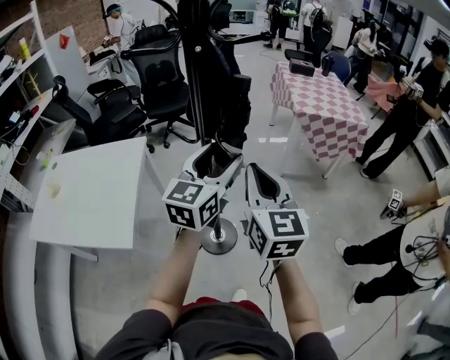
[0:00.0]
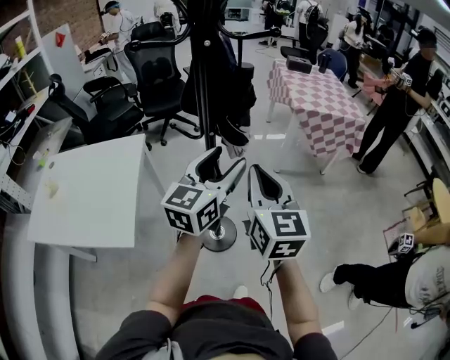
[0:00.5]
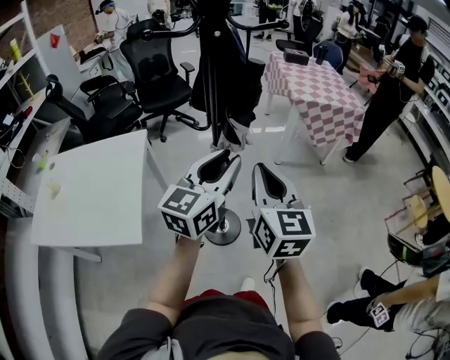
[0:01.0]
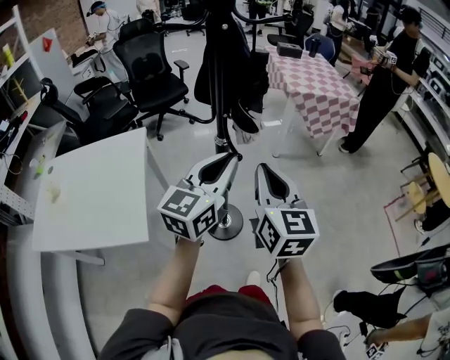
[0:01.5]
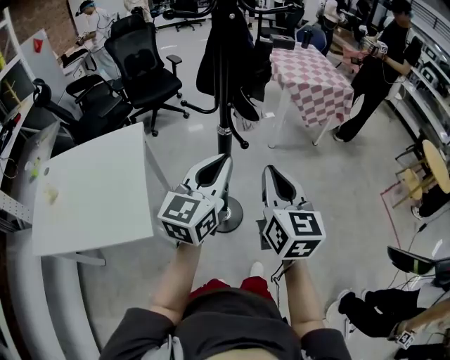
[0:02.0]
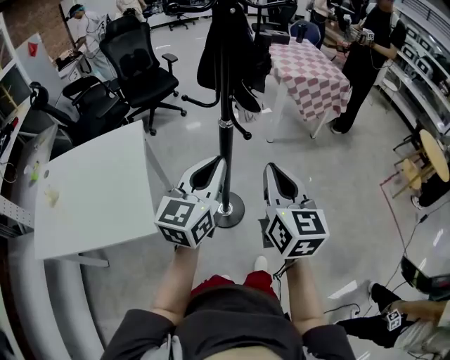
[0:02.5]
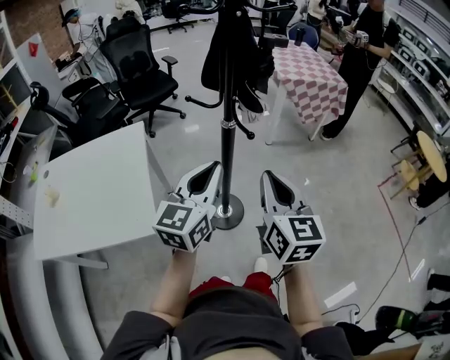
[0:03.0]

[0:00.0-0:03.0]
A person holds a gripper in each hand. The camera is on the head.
0:00.0 to 0:01.5: Both grippers move backward, roughly 10 cm. The left gripper closes.
0:01.5 to 0:03.0: The right gripper travels backward by about 10 cm. Meanwhile the left gripper shifts roughly 10 cm backward and to the left.

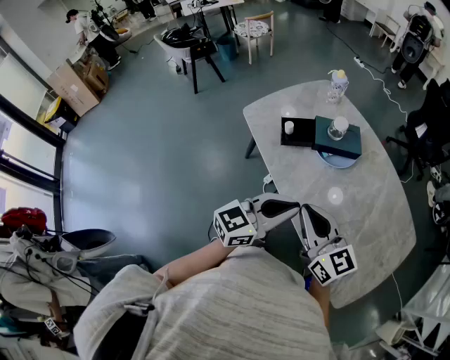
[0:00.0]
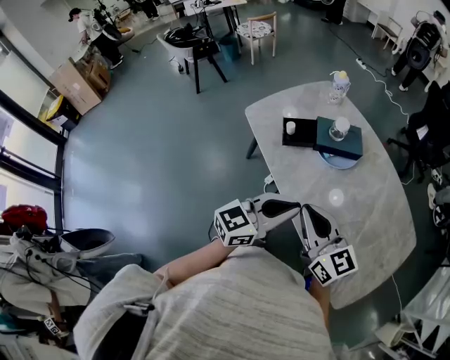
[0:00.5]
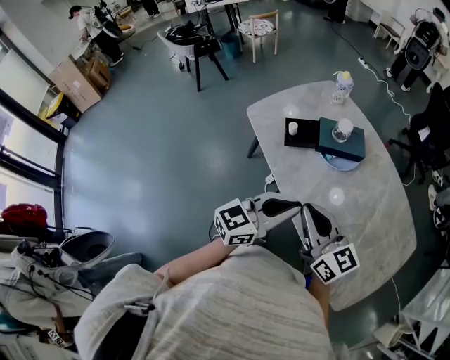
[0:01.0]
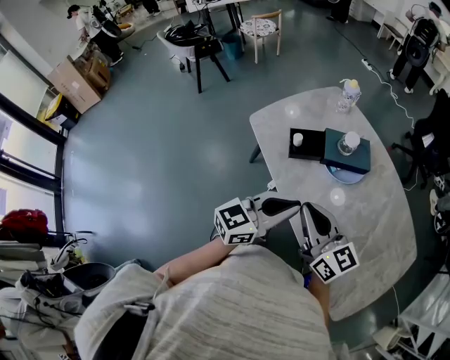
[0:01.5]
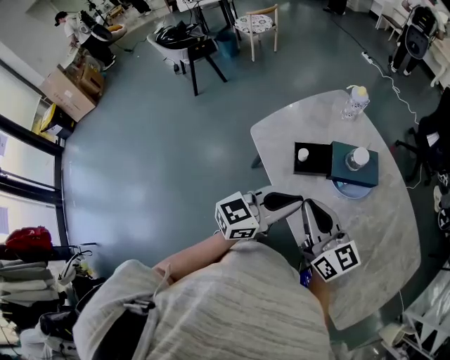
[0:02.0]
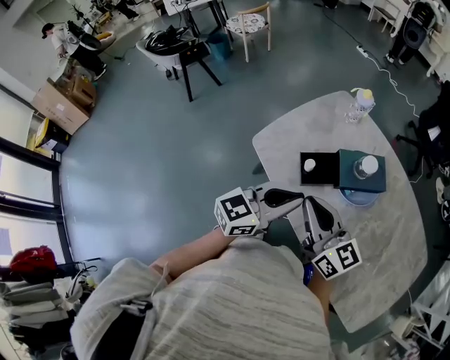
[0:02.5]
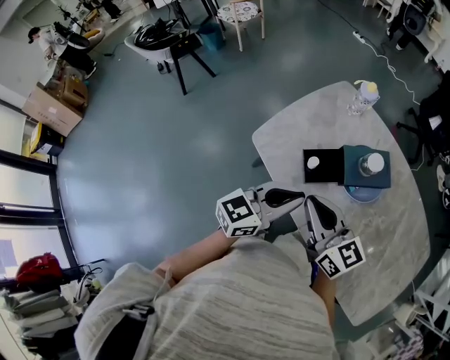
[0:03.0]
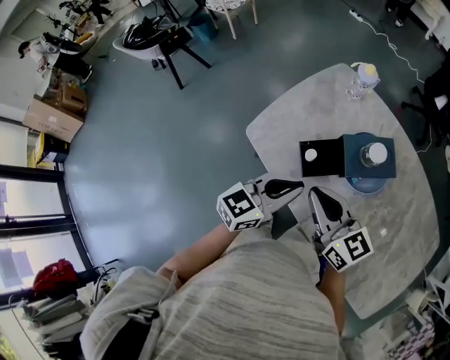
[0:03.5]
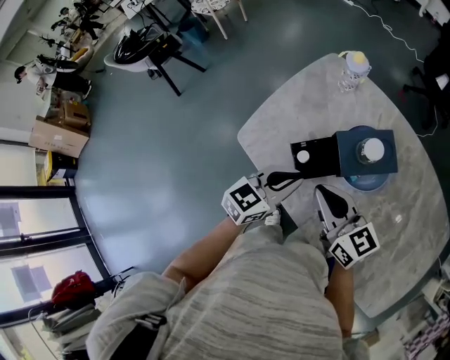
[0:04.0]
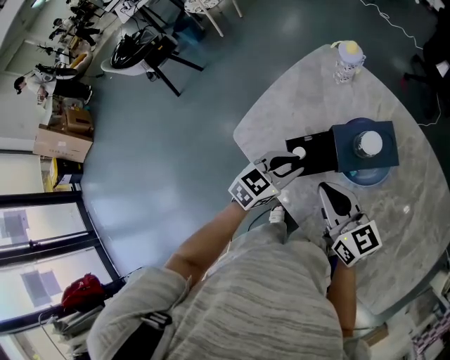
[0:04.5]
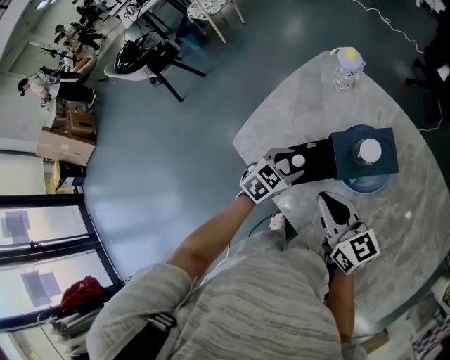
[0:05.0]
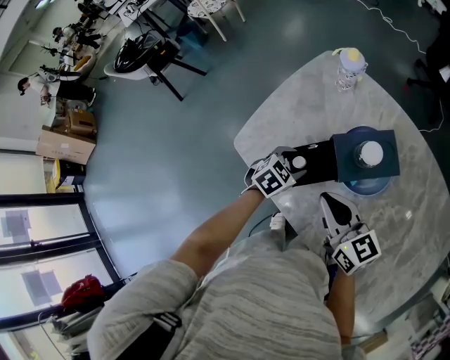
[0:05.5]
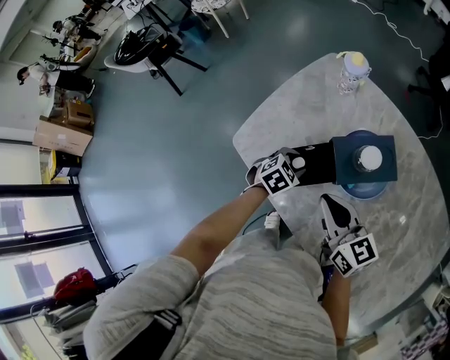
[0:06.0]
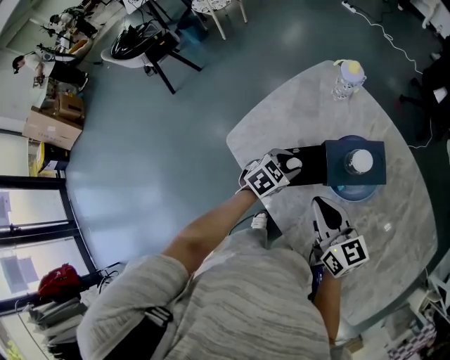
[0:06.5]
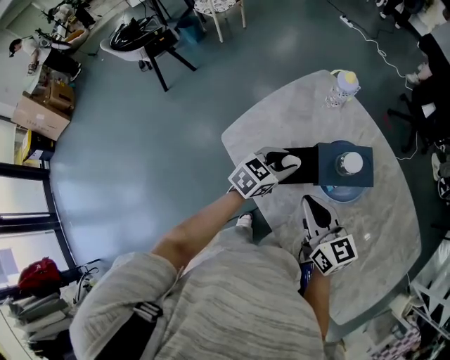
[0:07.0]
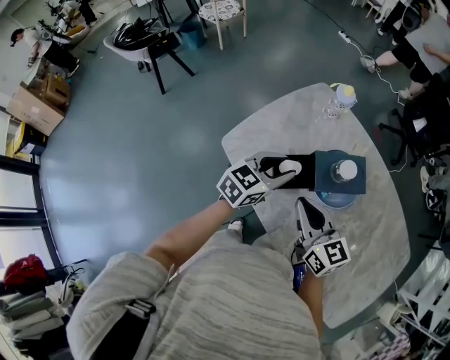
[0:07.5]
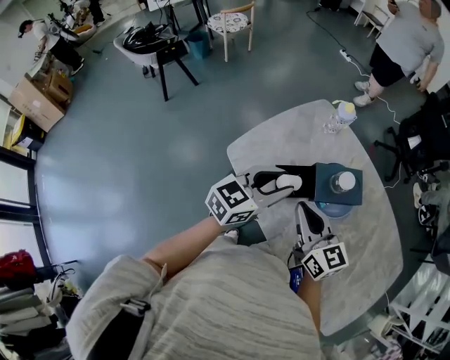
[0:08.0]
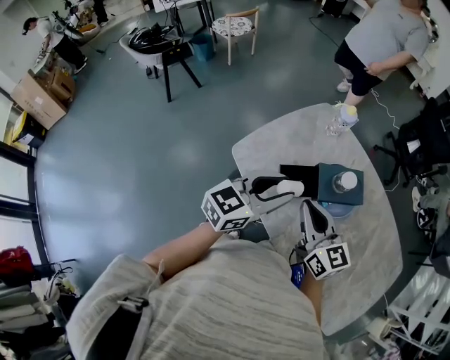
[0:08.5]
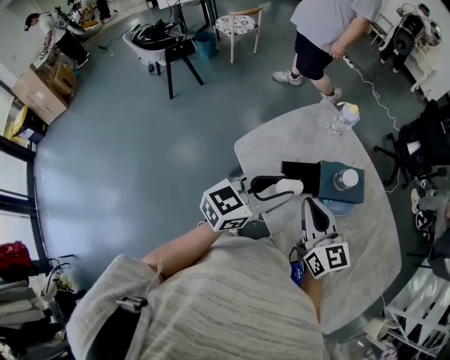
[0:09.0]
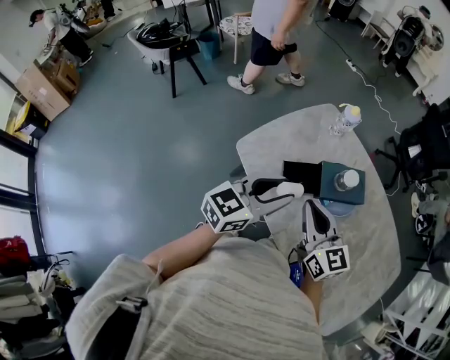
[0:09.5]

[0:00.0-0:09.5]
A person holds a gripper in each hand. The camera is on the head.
0:00.0 to 0:02.0: The grippers both shift forward and to the left by some 20 cm.
0:02.0 to 0:04.0: The two grippers go approximately 20 cm forward and downward.
0:04.0 to 0:05.5: The left gripper travels downward and forward by some 15 cm, angles its fingers downward, by about 30 degrees, and opens its fingers; the right gripper moves approximately 5 cm.
0:05.5 to 0:07.5: The right gripper shifts by some 5 cm, while the left gripper moves upward, about 20 cm, and tips its fingers upward by roughly 30 degrees.
0:07.5 to 0:09.5: The right gripper moves about 5 cm. Meanwhile the left gripper shifts some 15 cm backward and upward.

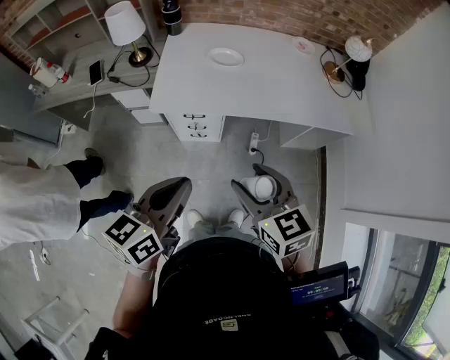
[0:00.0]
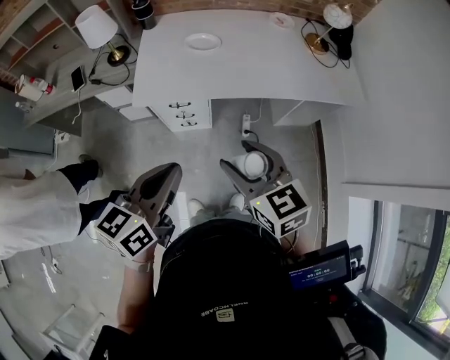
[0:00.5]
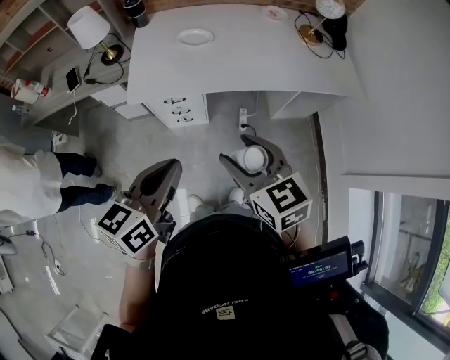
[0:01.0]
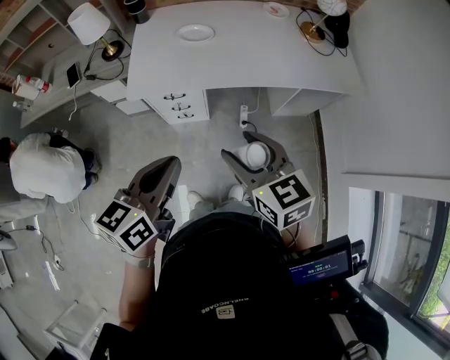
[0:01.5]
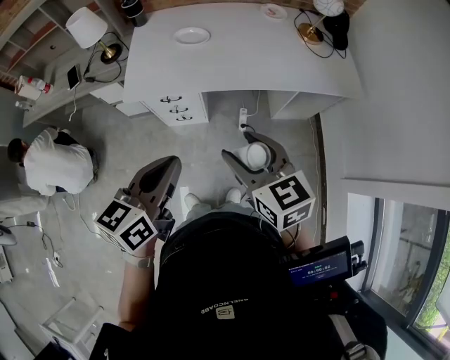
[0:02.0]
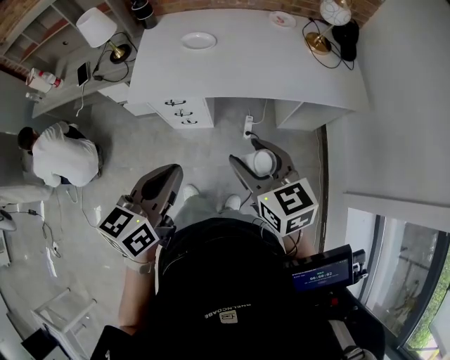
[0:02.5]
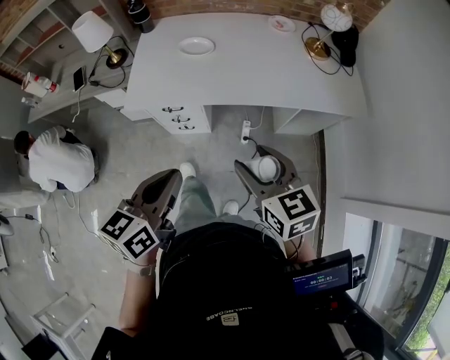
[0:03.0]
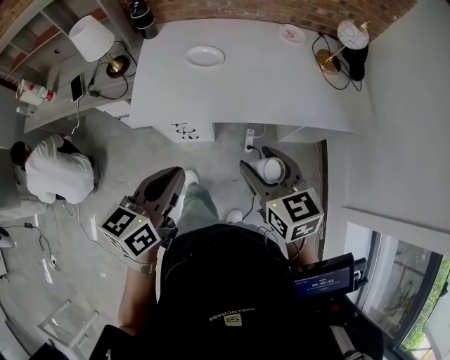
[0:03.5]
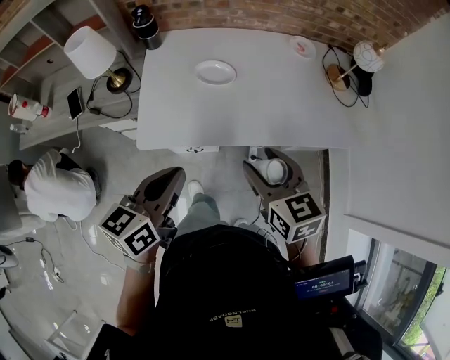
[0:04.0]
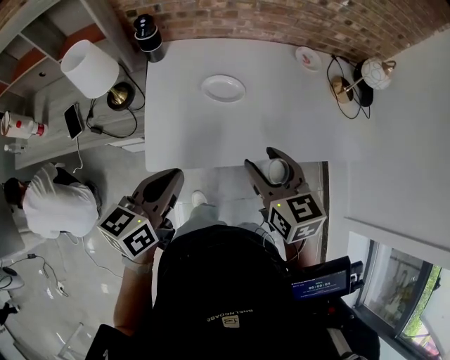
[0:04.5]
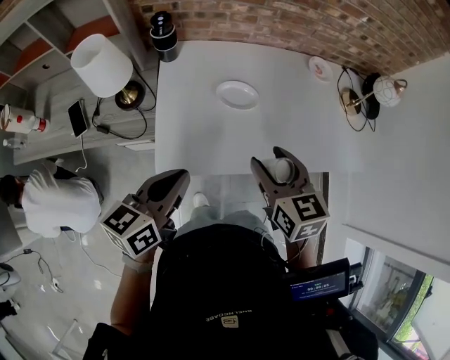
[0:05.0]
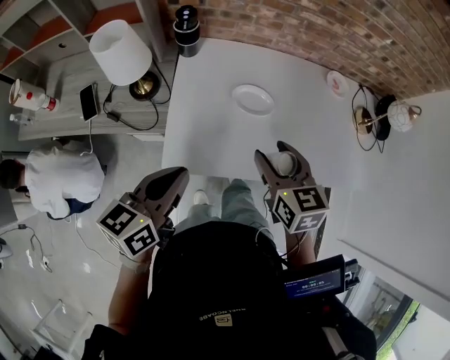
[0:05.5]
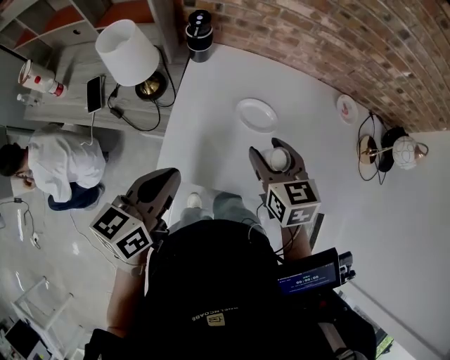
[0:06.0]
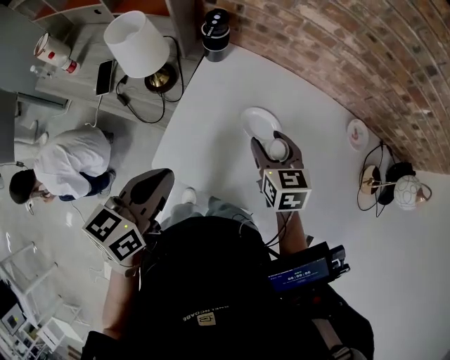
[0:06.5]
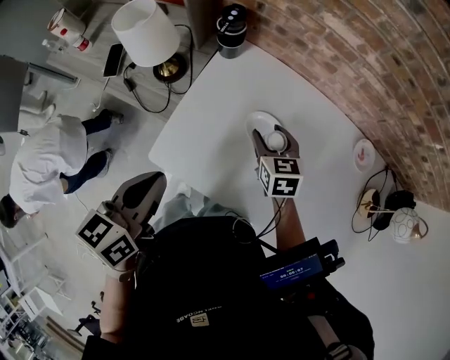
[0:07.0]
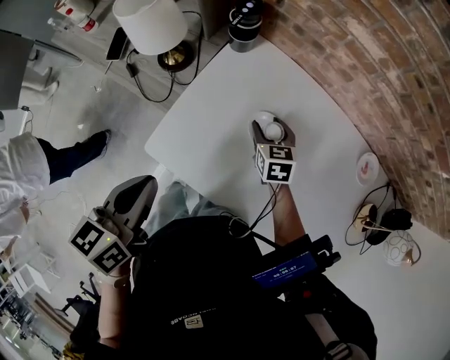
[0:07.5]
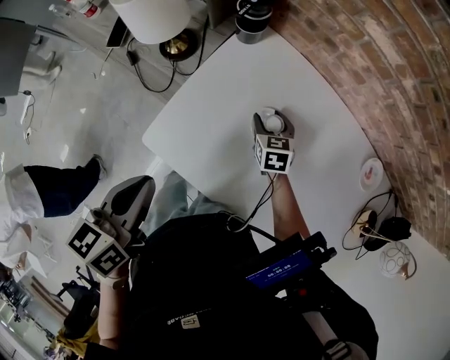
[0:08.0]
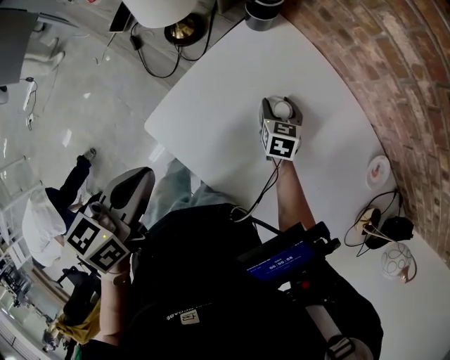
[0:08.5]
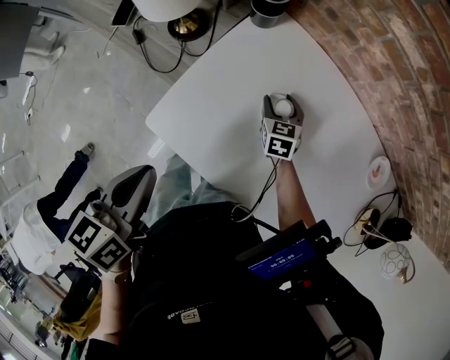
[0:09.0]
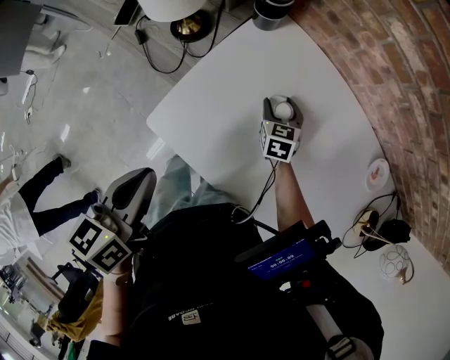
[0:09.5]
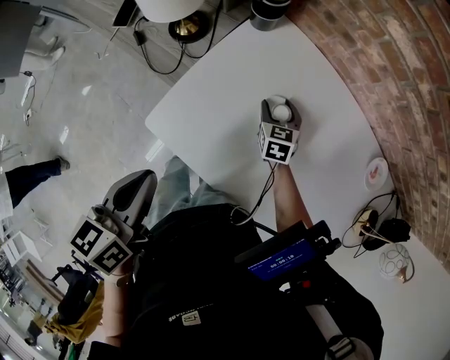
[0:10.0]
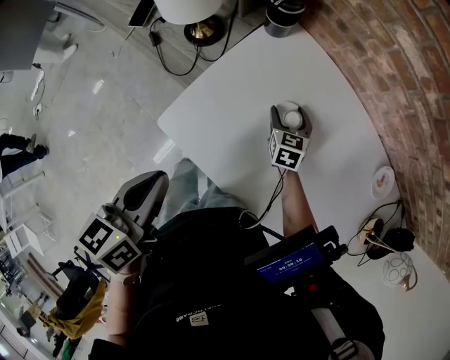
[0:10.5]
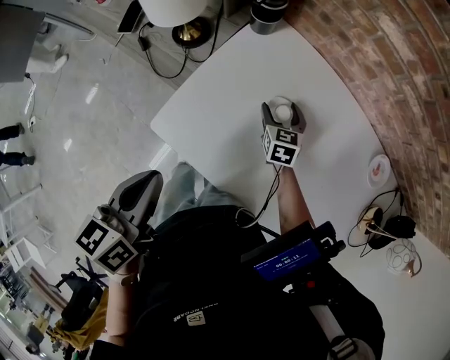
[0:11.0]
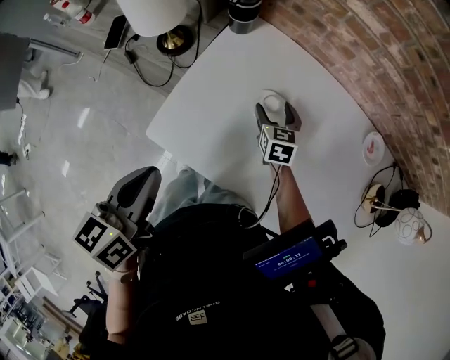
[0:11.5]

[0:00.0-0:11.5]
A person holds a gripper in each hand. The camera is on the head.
0:00.0 to 0:02.0: Both grippers travel together to the right, about 10 cm.
0:02.0 to 0:04.0: The right gripper goes roughly 20 cm forward; the left gripper moves forward and to the left, some 25 cm.
0:04.0 to 0:06.0: The two grippers go roughly 20 cm forward and to the left.
0:06.0 to 0:07.5: The left gripper turns by about 30 degrees. Meanwhile the right gripper shifts roughly 25 cm downward and forward.
0:07.5 to 0:09.5: The right gripper moves downward, some 5 cm.
0:09.5 to 0:11.5: The right gripper shifts by some 5 cm.

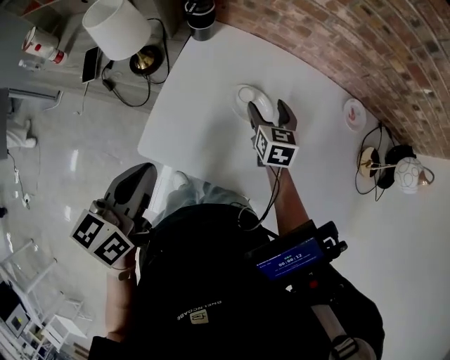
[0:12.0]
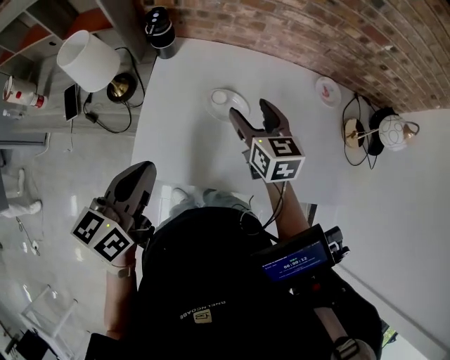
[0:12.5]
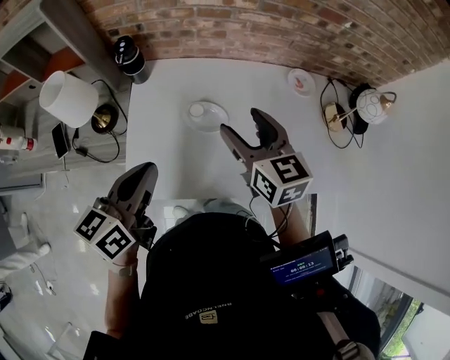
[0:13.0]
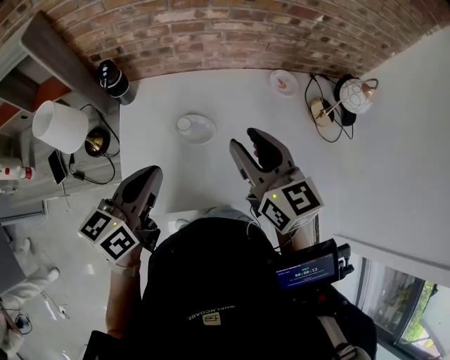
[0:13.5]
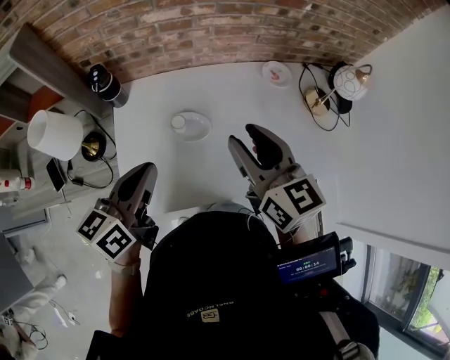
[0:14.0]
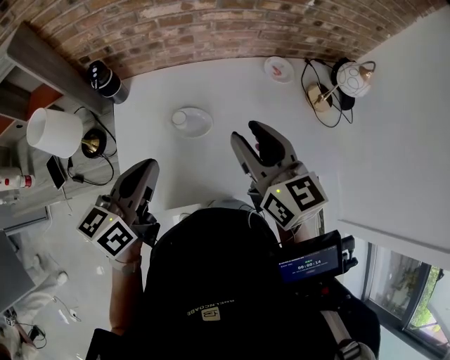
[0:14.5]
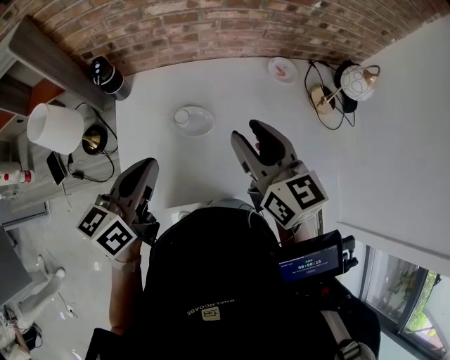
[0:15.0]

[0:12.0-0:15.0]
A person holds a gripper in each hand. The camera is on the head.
0:12.0 to 0:13.5: The left gripper shifts approximately 10 cm to the right and forward, and turns by roughly 30 degrees. The right gripper shifts some 25 cm upward and backward, turns by about 20 degrees, and closes up.
0:13.5 to 0:15.0: Neither gripper changes place.
